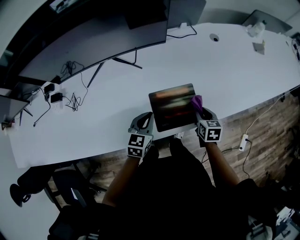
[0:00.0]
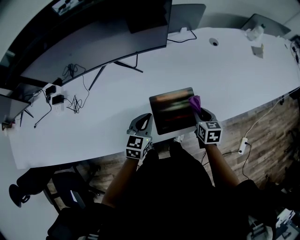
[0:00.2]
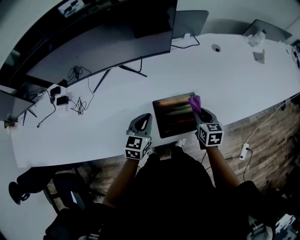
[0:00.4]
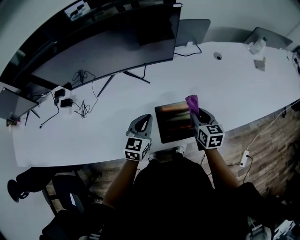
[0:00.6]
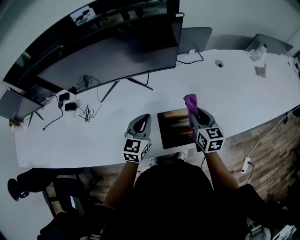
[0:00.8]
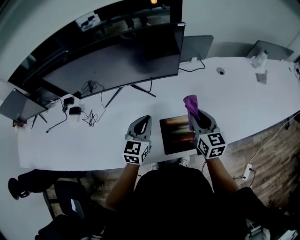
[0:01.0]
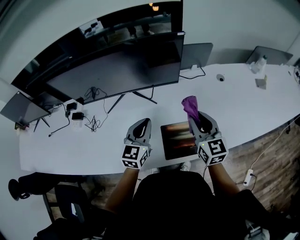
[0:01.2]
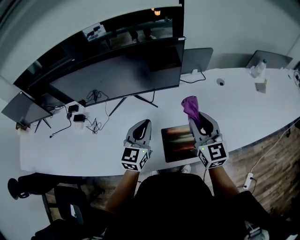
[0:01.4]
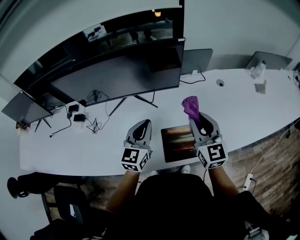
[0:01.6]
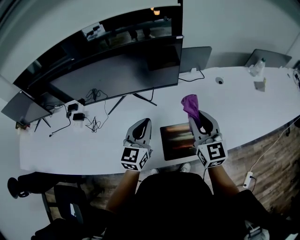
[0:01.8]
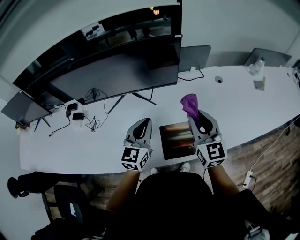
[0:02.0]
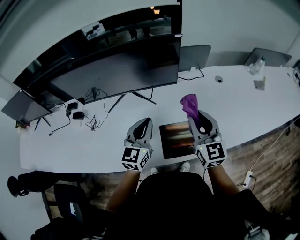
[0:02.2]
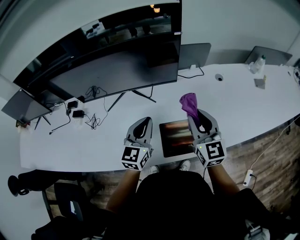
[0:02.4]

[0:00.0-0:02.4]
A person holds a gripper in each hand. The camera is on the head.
0:00.0 to 0:01.2: The left gripper is displaced upward and forward by about 15 cm, and swivels roughly 20 degrees. The right gripper moves upward and to the left, roughly 25 cm, and points its fingers some 40 degrees further upward.
0:01.2 to 0:02.4: The grippers make only small movements.

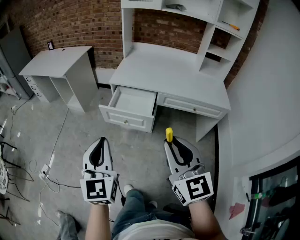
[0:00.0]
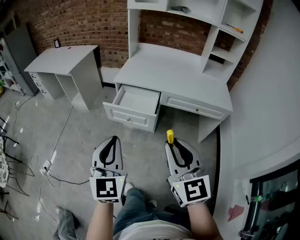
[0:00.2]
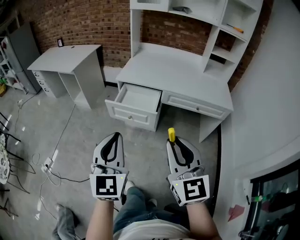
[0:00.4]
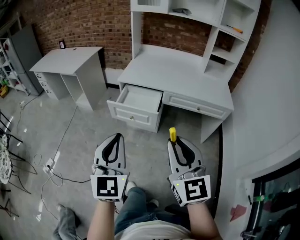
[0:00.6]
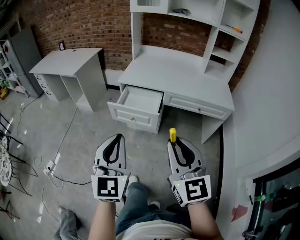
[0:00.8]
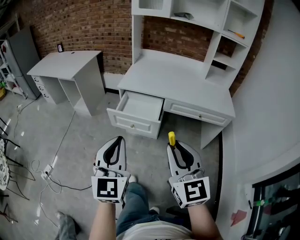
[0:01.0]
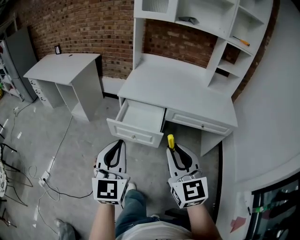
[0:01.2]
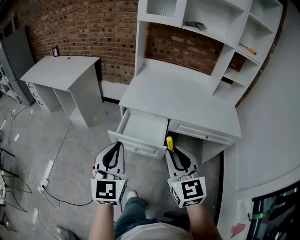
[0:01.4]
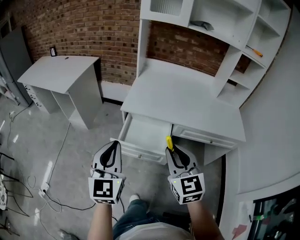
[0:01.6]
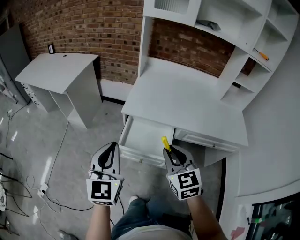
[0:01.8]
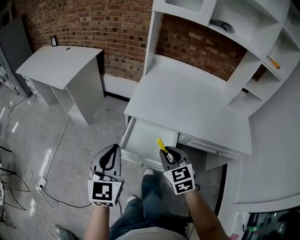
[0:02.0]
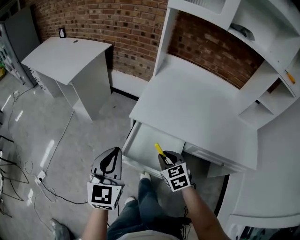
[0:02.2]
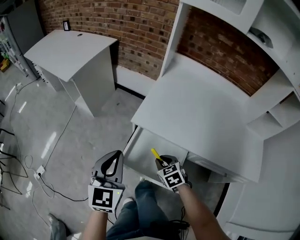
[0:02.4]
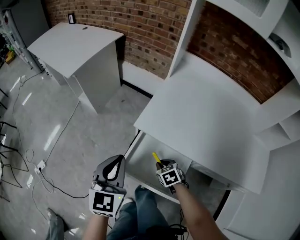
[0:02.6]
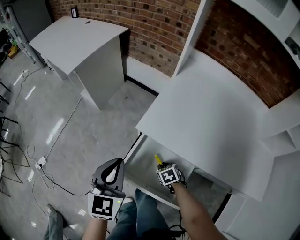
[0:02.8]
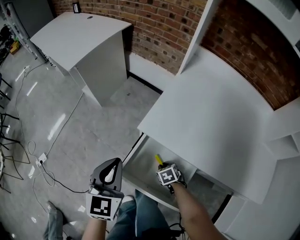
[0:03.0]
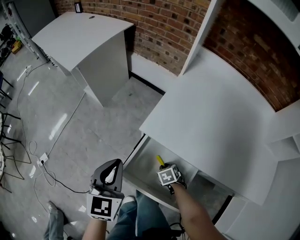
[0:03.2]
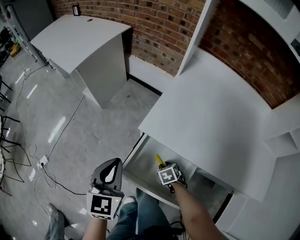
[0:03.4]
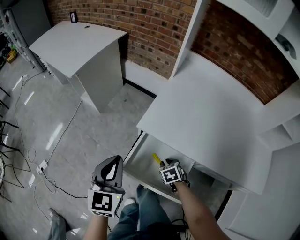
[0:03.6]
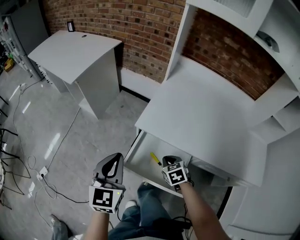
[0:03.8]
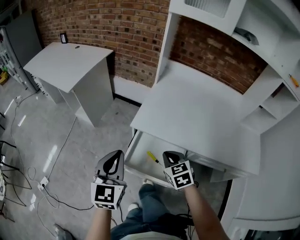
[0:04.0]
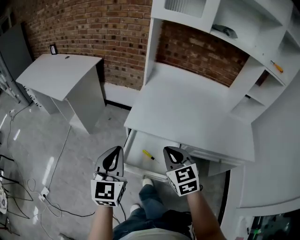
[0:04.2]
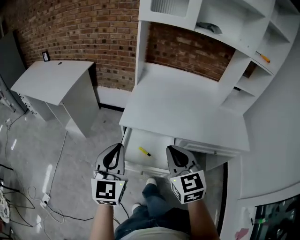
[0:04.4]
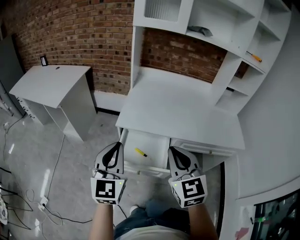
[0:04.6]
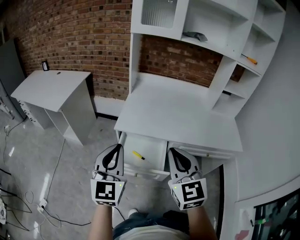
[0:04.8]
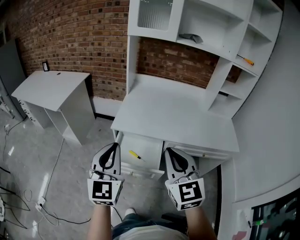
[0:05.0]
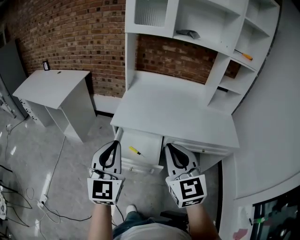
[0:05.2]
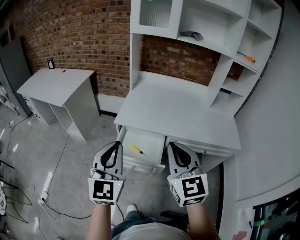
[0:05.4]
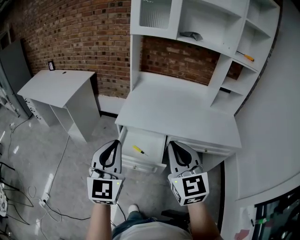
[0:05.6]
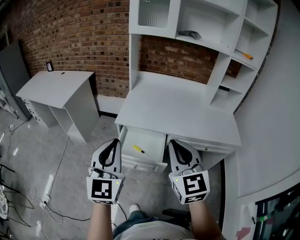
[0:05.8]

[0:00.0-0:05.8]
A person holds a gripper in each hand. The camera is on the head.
0:00.0 to 0:01.4: The two grippers go approximately 15 cm forward.
0:01.4 to 0:02.8: The left gripper is displaced forward and downward by some 35 cm, and swivels roughly 20 degrees, while the right gripper goes roughly 60 cm downward and forward, and angles its fingers downward, by approximately 60 degrees.
0:02.8 to 0:04.4: The right gripper moves upward, roughly 40 cm, and angles its fingers upward, by approximately 50 degrees. Meanwhile the left gripper travels upward and backward by some 20 cm, and changes its angle by approximately 20 degrees.
0:04.4 to 0:05.8: The right gripper heads backward, upward and to the right, covering approximately 15 cm. Meanwhile the left gripper moves backward and upward, roughly 15 cm.

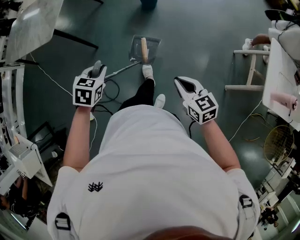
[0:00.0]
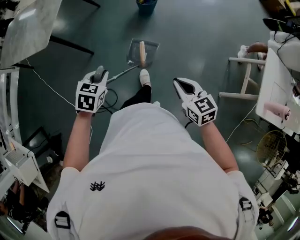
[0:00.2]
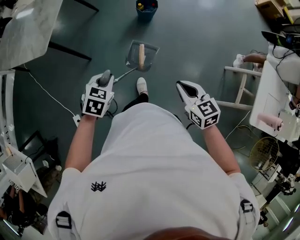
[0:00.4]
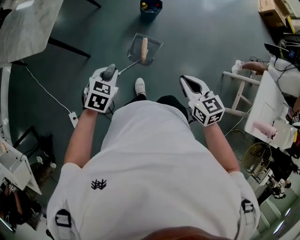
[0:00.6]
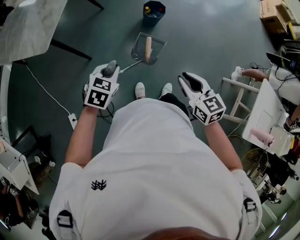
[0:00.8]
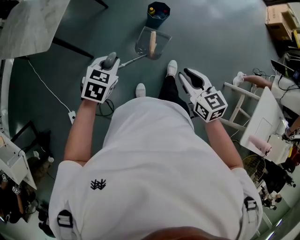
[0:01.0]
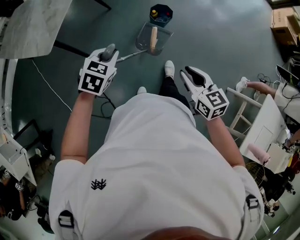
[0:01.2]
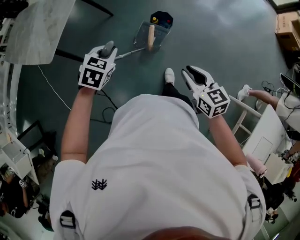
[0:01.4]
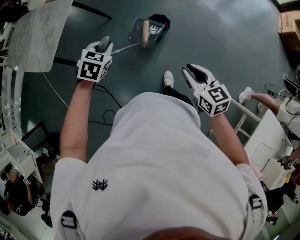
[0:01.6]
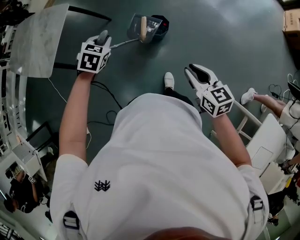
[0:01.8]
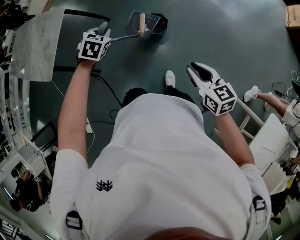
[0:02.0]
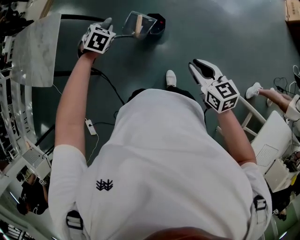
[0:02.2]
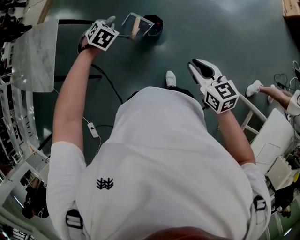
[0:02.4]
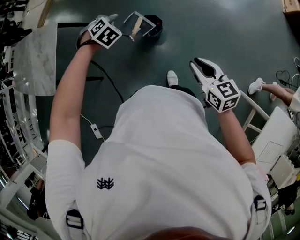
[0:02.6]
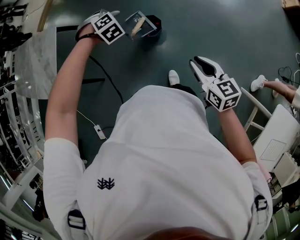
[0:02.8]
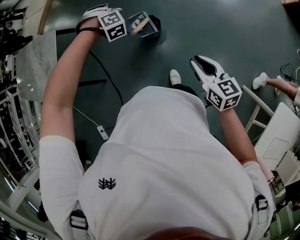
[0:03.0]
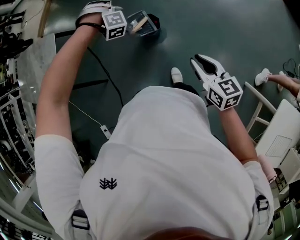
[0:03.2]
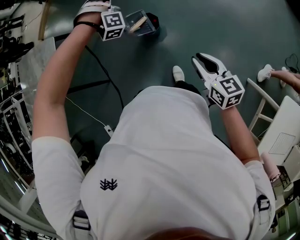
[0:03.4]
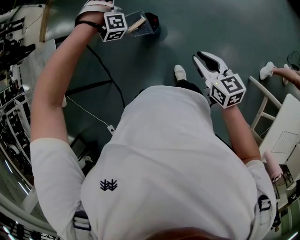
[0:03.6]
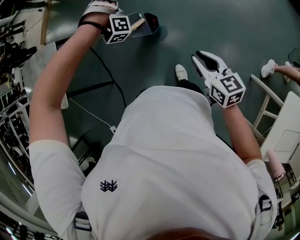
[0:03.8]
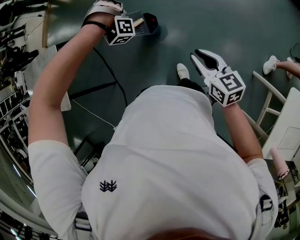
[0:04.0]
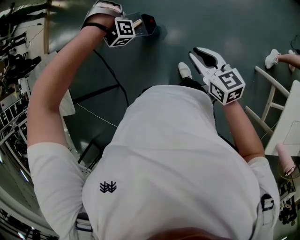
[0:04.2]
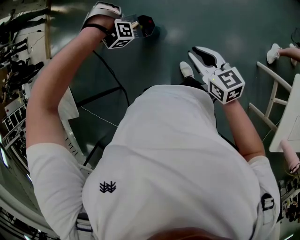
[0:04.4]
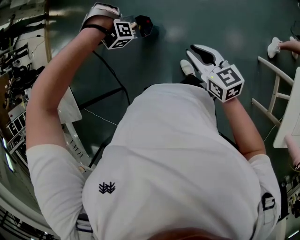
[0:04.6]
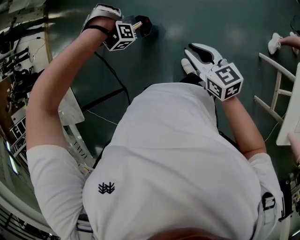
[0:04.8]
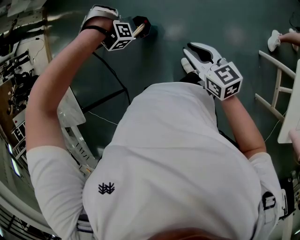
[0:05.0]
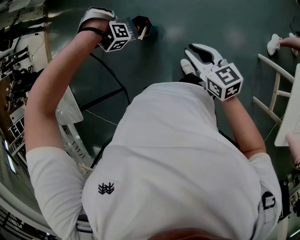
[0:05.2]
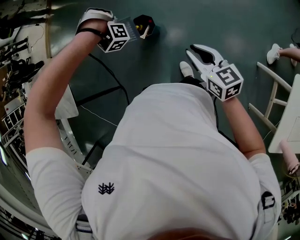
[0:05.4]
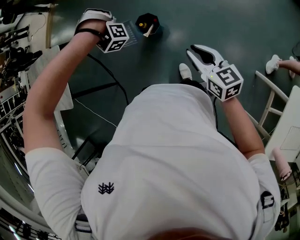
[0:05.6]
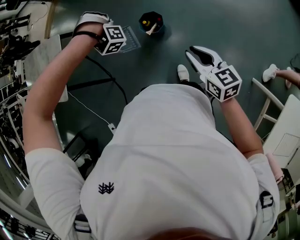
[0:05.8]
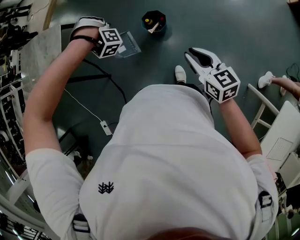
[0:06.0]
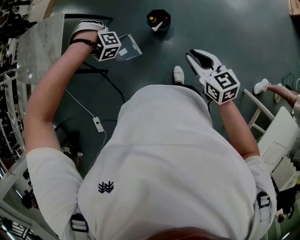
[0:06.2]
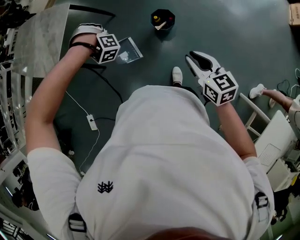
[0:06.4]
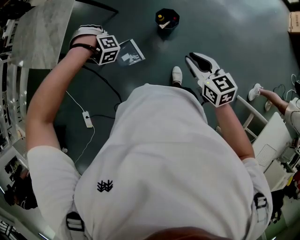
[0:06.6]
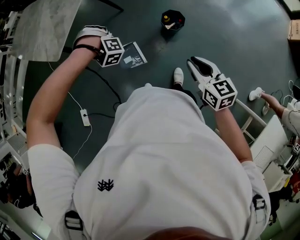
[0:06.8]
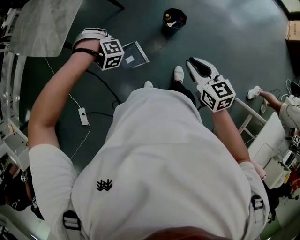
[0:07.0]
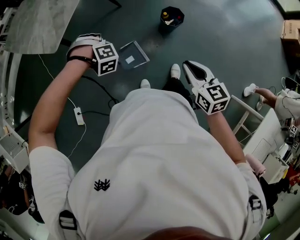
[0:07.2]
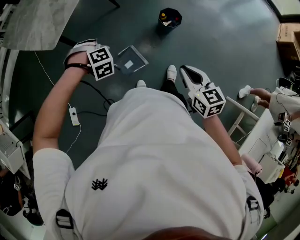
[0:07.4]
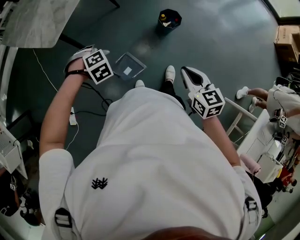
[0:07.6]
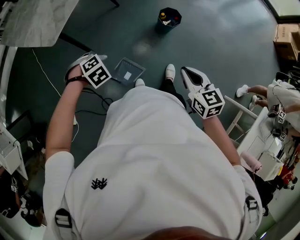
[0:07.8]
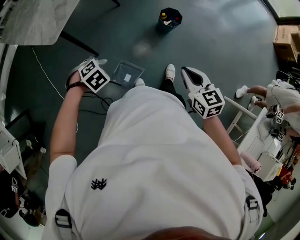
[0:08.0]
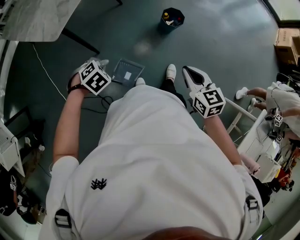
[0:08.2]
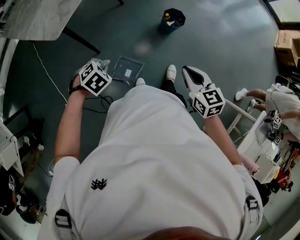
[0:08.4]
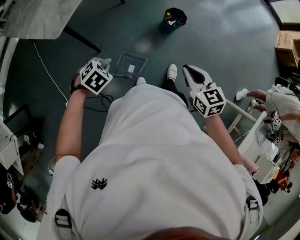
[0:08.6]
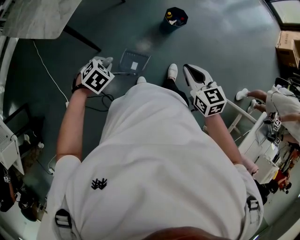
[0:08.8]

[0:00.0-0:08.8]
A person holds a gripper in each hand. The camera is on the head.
0:00.0 to 0:01.4: The right gripper moves approximately 35 cm.
0:01.4 to 0:03.0: The right gripper changes place by about 25 cm.
0:03.0 to 0:04.4: The right gripper moves roughly 5 cm.
0:04.4 to 0:05.8: The right gripper changes place by some 5 cm.
0:05.8 to 0:07.4: The right gripper changes place by roughly 35 cm.

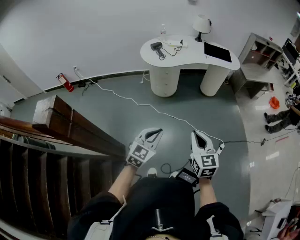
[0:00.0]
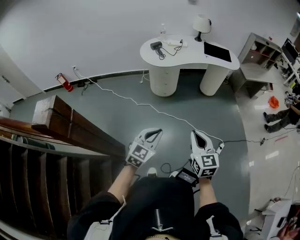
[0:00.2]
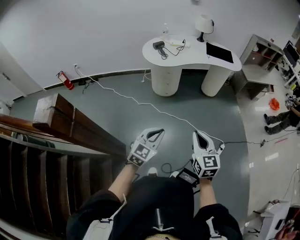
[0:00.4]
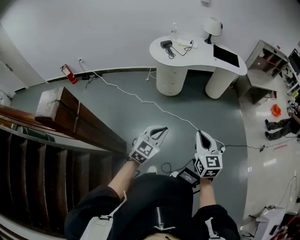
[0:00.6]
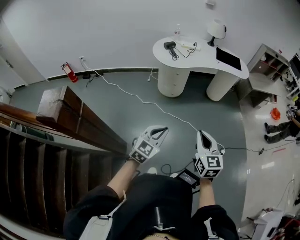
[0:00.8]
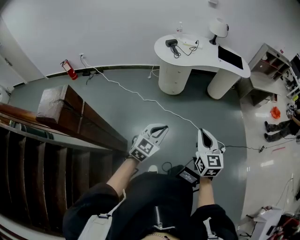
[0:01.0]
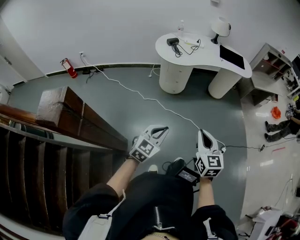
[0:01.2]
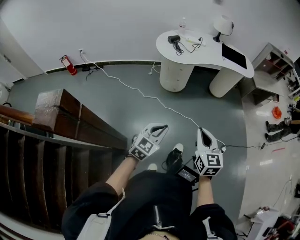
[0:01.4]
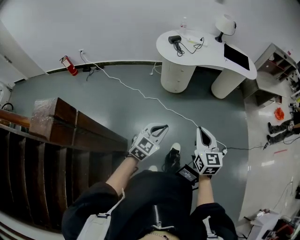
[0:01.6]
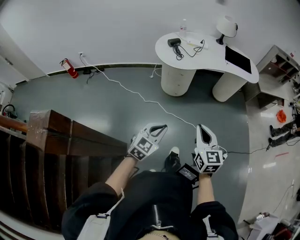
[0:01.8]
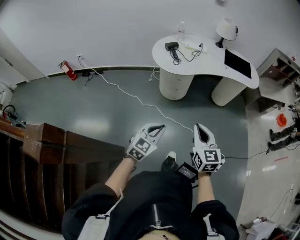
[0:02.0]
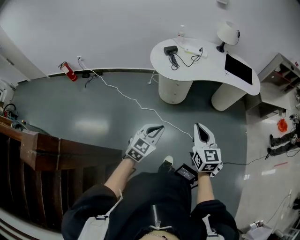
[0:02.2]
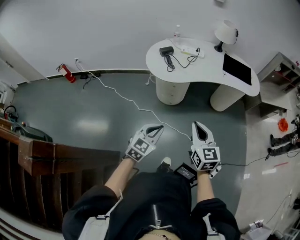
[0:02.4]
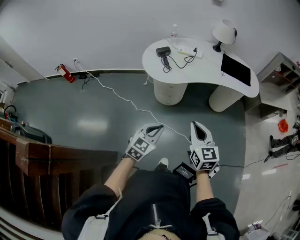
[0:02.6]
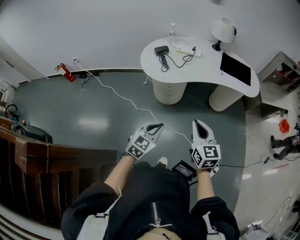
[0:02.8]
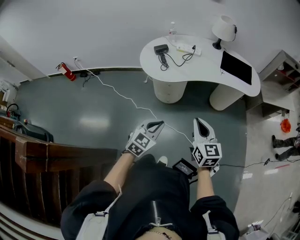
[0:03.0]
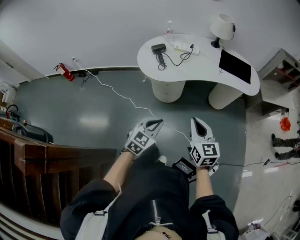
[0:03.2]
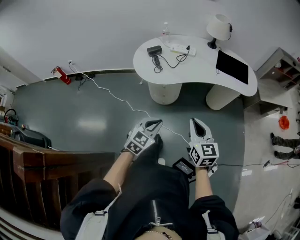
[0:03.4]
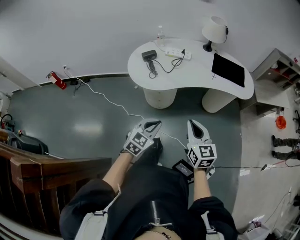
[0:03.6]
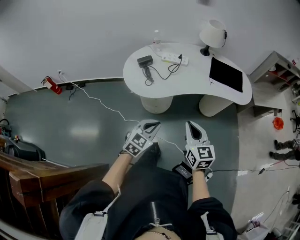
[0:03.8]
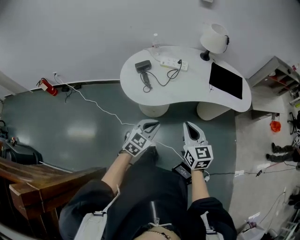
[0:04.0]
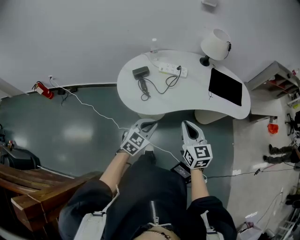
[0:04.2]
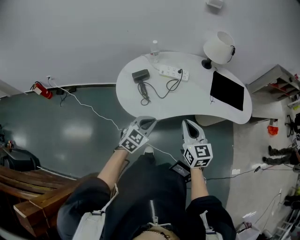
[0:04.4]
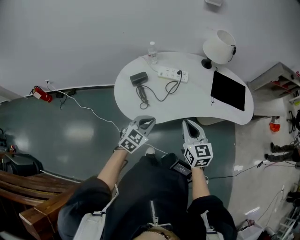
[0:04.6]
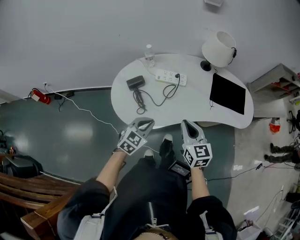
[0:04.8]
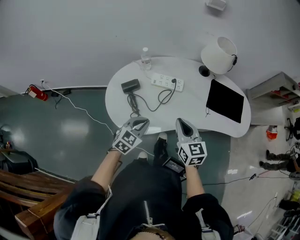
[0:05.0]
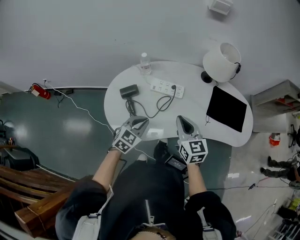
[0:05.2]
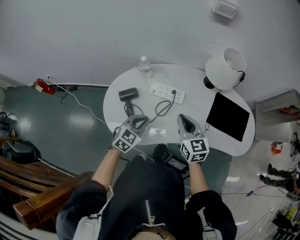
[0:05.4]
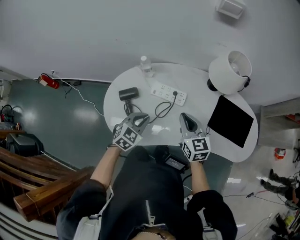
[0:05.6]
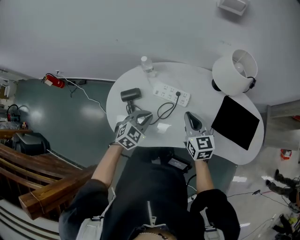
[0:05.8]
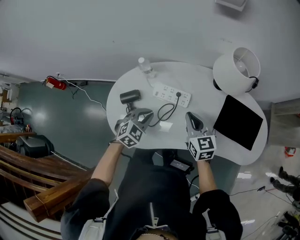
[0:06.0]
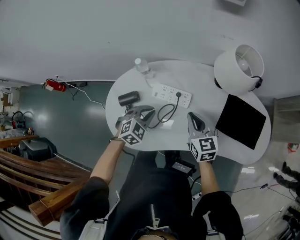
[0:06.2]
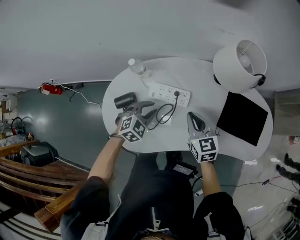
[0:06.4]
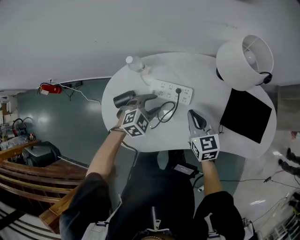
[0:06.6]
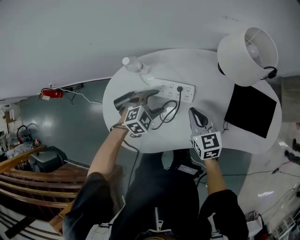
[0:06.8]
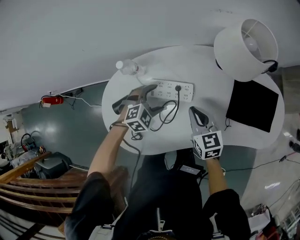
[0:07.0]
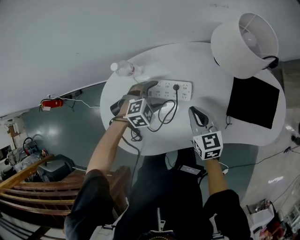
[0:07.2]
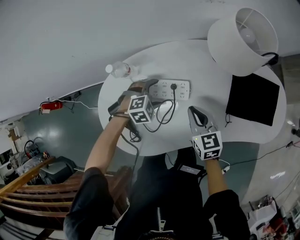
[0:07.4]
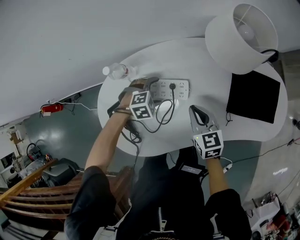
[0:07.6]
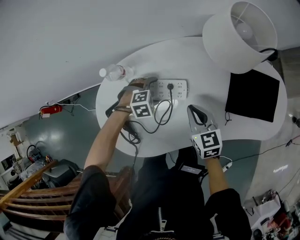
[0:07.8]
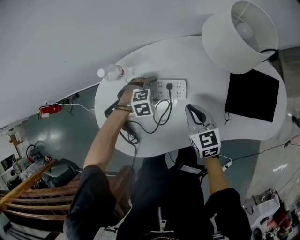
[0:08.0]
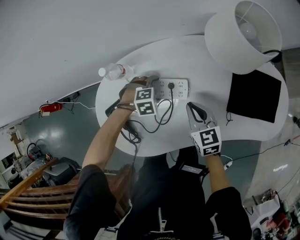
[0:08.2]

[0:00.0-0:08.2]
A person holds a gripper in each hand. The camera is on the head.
0:00.0 to 0:01.6: Both grippers travel together to the left and forward, roughly 10 cm.
0:01.6 to 0:03.2: The left gripper travels forward and to the right by some 30 cm; the right gripper goes about 30 cm forward.
0:03.2 to 0:05.0: Both grippers are carried forward, approximately 40 cm.
0:05.0 to 0:06.6: The left gripper shifts roughly 25 cm forward, swivels about 30 degrees, and opens up; the right gripper goes roughly 25 cm forward and downward.
0:06.6 to 0:08.2: The left gripper travels downward by about 10 cm, turns by some 40 degrees, and opens its fingers. The right gripper travels downward by approximately 5 cm.
